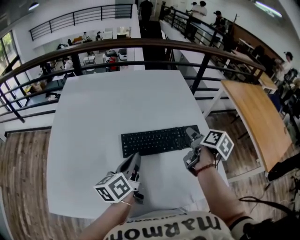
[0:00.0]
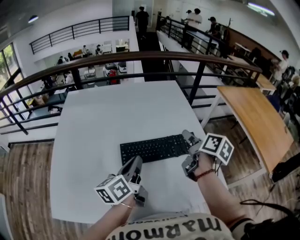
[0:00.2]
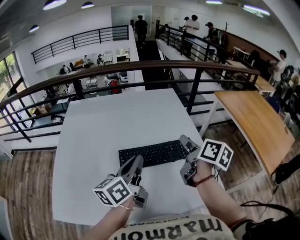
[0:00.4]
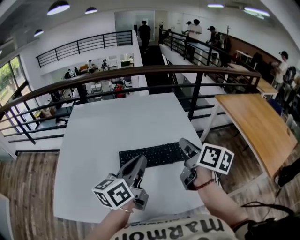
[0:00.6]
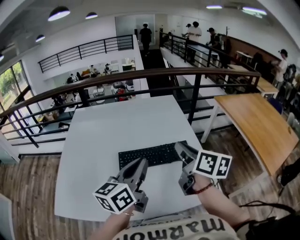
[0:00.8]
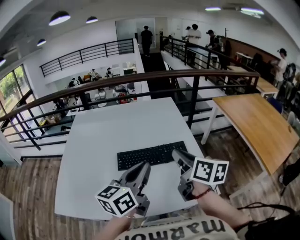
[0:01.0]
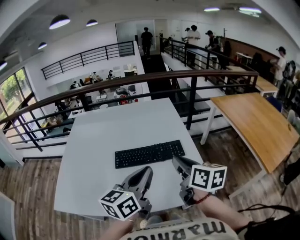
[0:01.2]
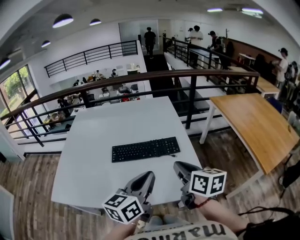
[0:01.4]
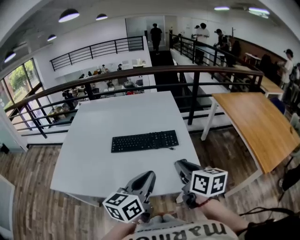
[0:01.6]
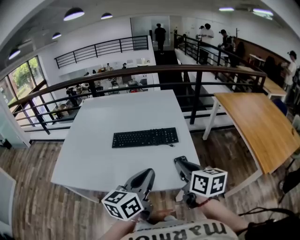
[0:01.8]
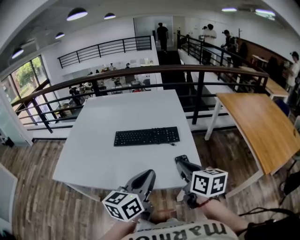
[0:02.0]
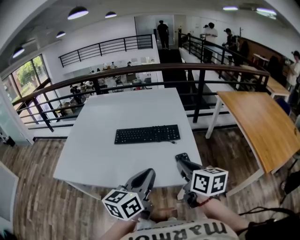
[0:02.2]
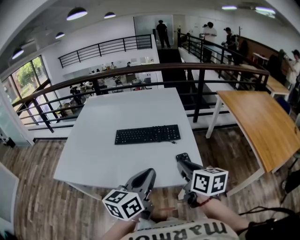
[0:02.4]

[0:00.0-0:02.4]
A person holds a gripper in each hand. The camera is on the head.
0:00.0 to 0:01.2: The left gripper travels to the right, upward and backward by approximately 30 cm, and turns by roughly 30 degrees. The right gripper moves backward and upward, roughly 25 cm, changes its angle by roughly 40 degrees, and closes up.
0:01.2 to 0:02.4: Both grippers travel together backward and to the right, roughly 15 cm.

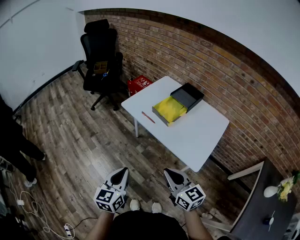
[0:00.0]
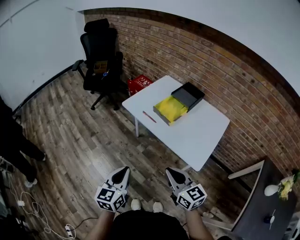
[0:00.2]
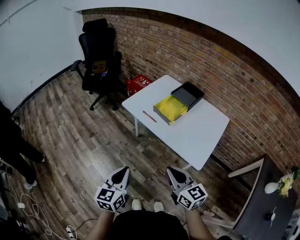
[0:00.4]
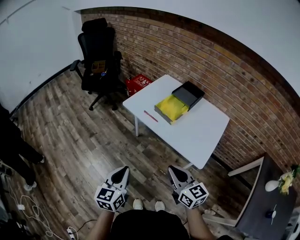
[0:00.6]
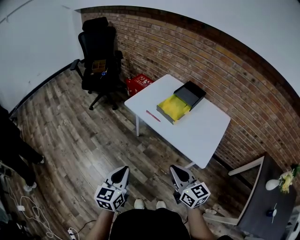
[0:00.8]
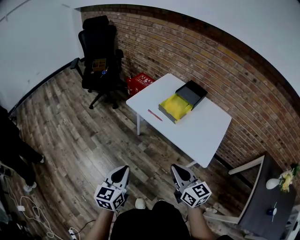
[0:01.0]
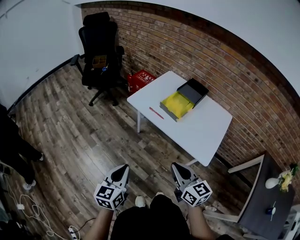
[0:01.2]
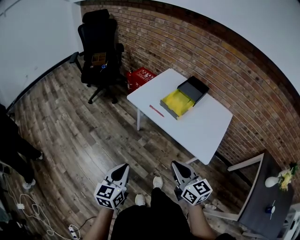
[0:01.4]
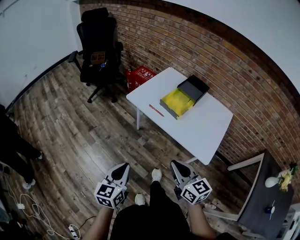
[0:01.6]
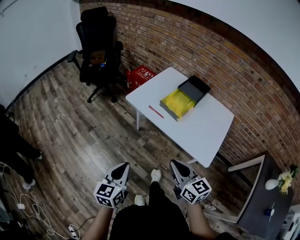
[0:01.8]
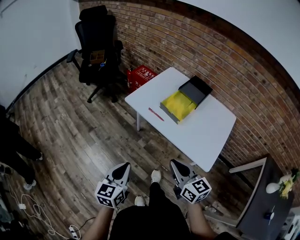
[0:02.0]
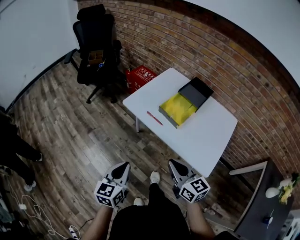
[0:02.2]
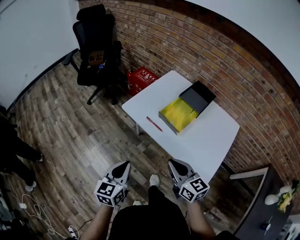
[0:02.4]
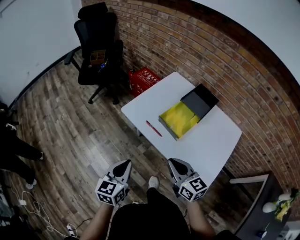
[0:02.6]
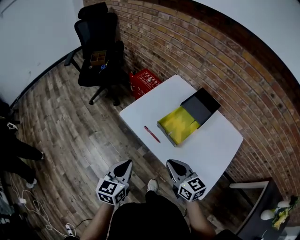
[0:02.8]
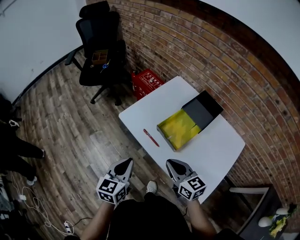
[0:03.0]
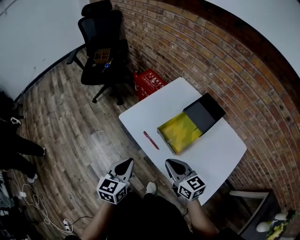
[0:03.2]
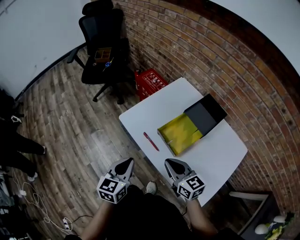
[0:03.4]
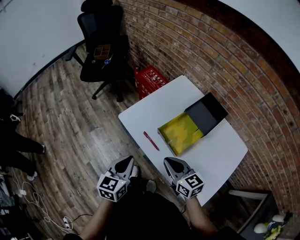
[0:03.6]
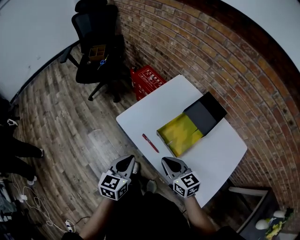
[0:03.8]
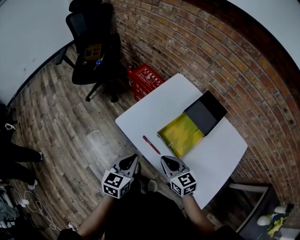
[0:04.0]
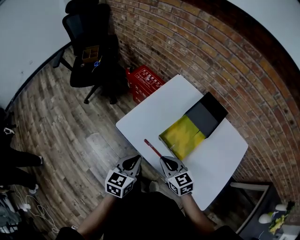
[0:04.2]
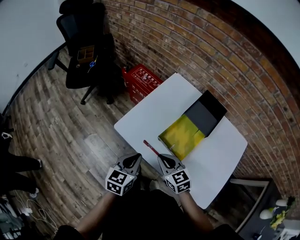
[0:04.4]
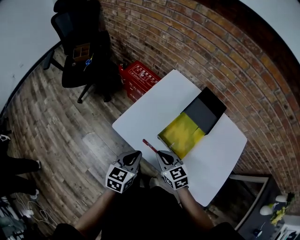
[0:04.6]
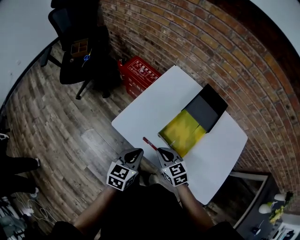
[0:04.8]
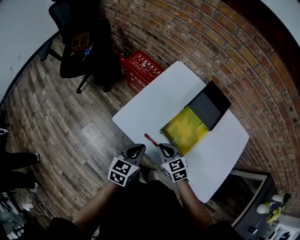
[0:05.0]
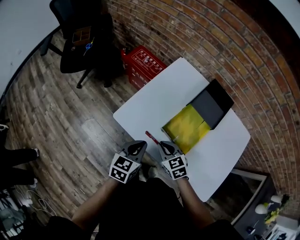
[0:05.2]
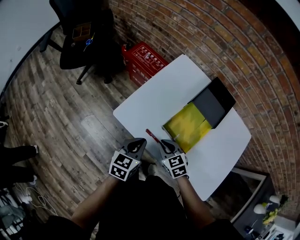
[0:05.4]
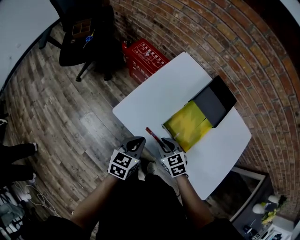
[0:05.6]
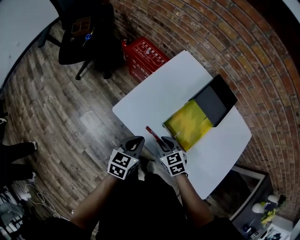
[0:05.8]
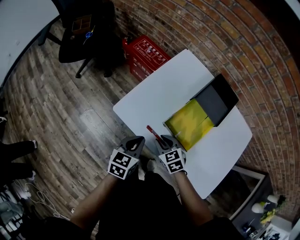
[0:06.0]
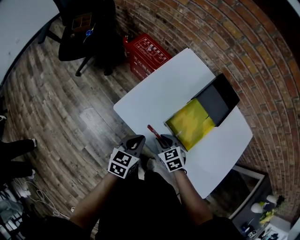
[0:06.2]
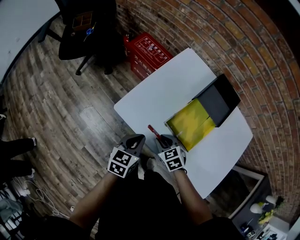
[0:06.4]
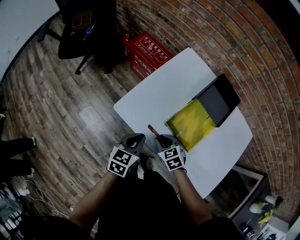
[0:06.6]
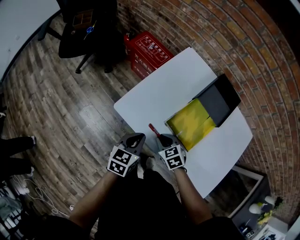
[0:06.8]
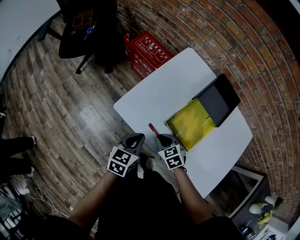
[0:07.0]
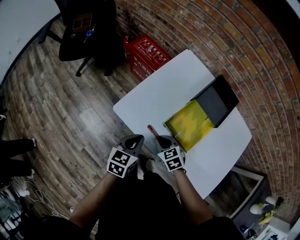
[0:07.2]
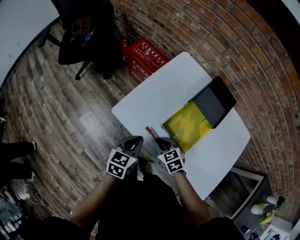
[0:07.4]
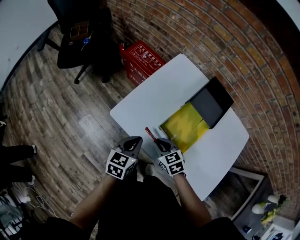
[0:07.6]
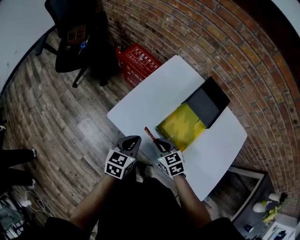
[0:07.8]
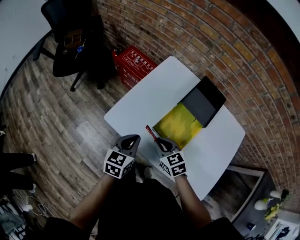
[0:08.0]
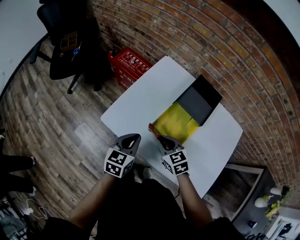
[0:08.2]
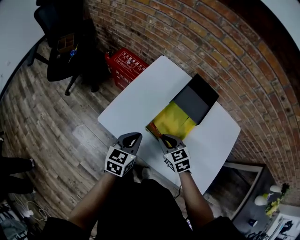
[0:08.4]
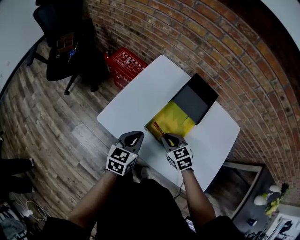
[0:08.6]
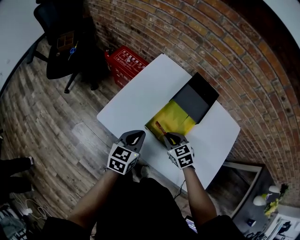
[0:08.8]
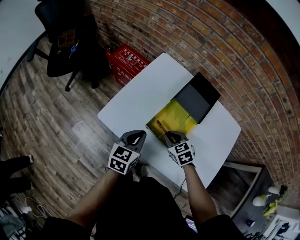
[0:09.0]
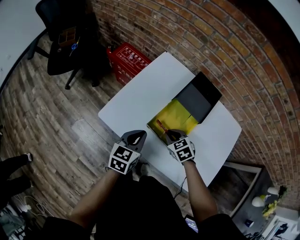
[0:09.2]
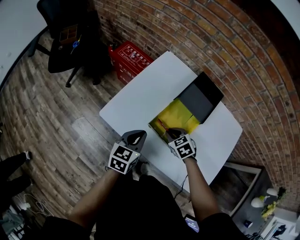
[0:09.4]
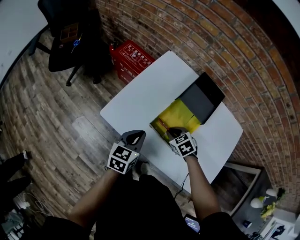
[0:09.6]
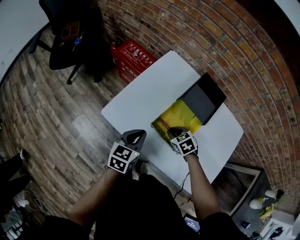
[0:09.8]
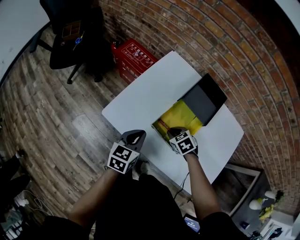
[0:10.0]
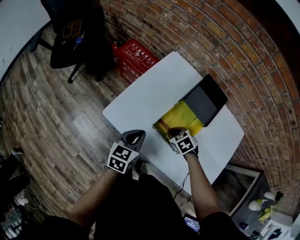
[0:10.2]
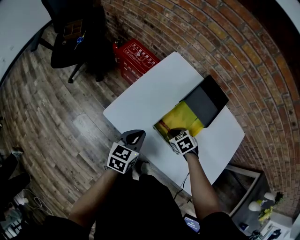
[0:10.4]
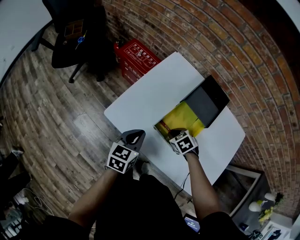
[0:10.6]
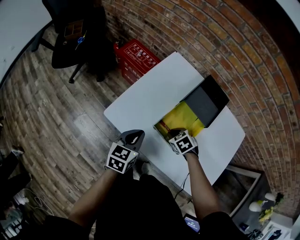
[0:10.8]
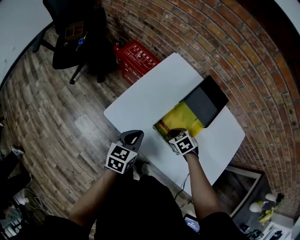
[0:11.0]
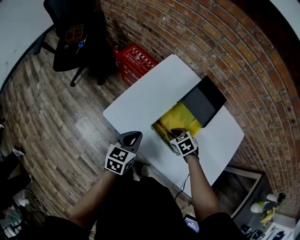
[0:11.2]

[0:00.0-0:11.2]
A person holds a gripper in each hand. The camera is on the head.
0:00.0 to 0:01.6: The two grippers go about 5 cm to the left.
0:01.6 to 0:03.2: The right gripper travels forward by about 30 cm. Meanwhile the left gripper heads forward and to the right, covering about 30 cm.
0:03.2 to 0:04.8: The left gripper is displaced forward and downward by some 15 cm, and rotates about 20 degrees. Meanwhile the right gripper goes about 15 cm forward, downward and to the left, and changes its angle by about 20 degrees.
0:04.8 to 0:06.4: The right gripper travels downward by some 10 cm. Meanwhile the left gripper travels downward by some 5 cm.
0:06.4 to 0:08.0: The left gripper shifts by about 5 cm. The right gripper goes roughly 10 cm upward.
0:08.0 to 0:09.6: The right gripper shifts about 10 cm to the right and downward, and rotates roughly 20 degrees.
0:09.6 to 0:11.2: The grippers make only small movements.

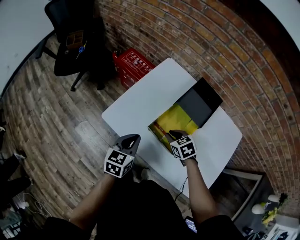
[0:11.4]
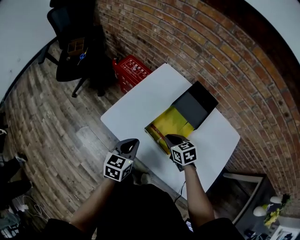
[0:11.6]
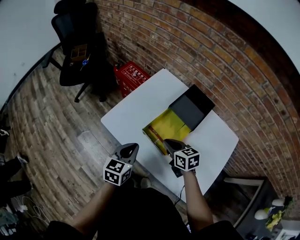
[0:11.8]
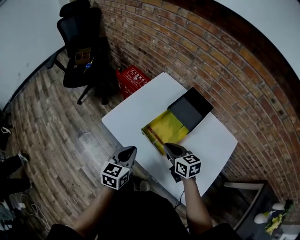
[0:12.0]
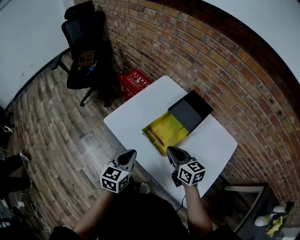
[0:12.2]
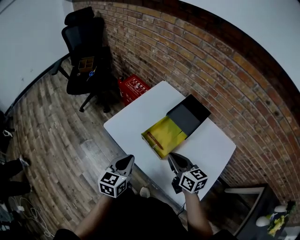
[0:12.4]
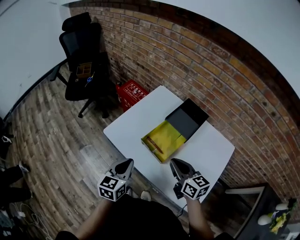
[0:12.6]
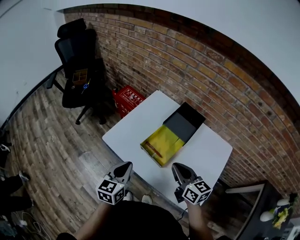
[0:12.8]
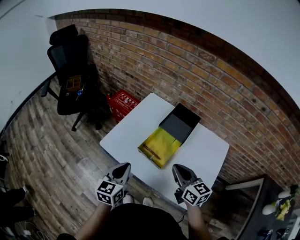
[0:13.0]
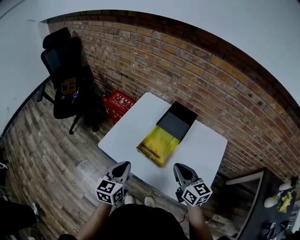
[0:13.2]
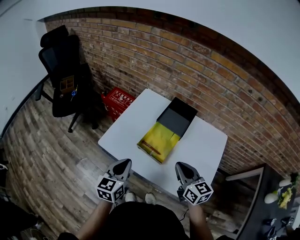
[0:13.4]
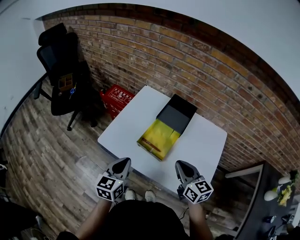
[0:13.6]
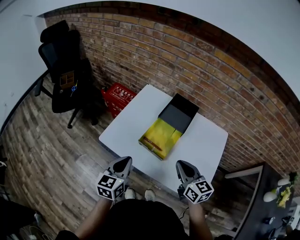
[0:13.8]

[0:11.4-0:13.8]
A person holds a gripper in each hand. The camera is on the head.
0:11.4 to 0:12.6: The left gripper travels backward and upward by approximately 15 cm. The right gripper is displaced upward and backward by approximately 20 cm, and tips its fingers upward by roughly 40 degrees.
0:12.6 to 0:13.8: The grippers stay close to where they were, moving slightly.

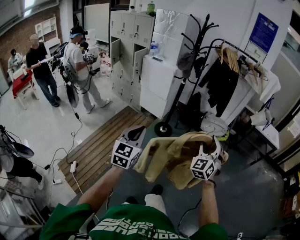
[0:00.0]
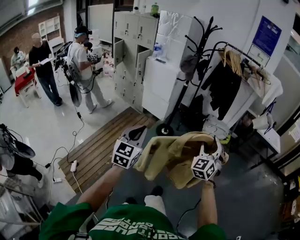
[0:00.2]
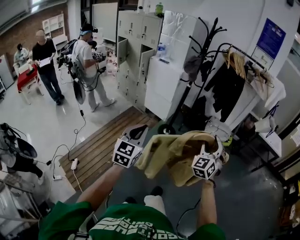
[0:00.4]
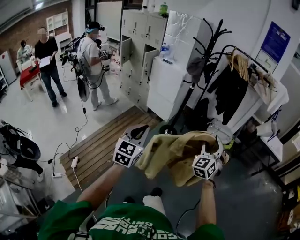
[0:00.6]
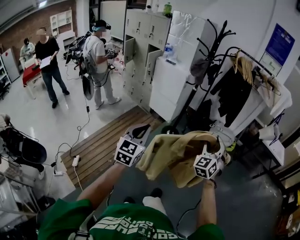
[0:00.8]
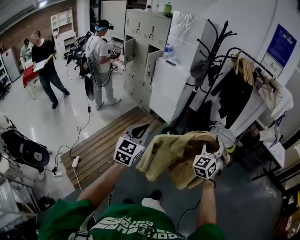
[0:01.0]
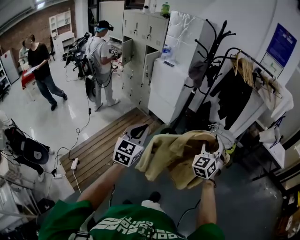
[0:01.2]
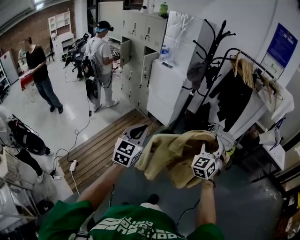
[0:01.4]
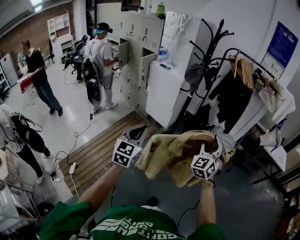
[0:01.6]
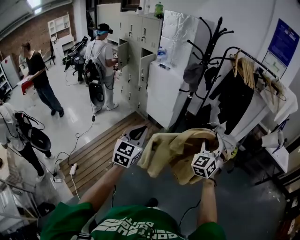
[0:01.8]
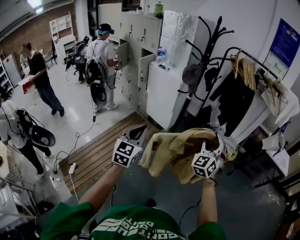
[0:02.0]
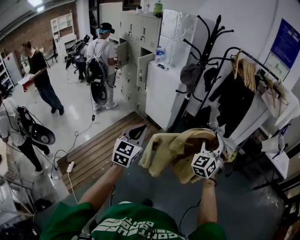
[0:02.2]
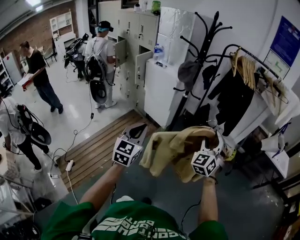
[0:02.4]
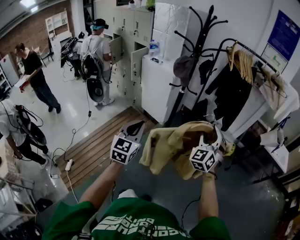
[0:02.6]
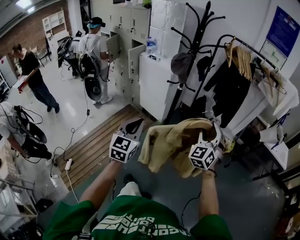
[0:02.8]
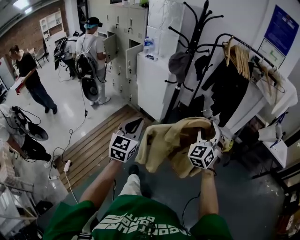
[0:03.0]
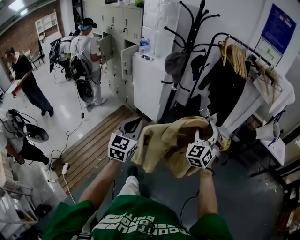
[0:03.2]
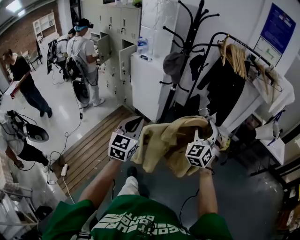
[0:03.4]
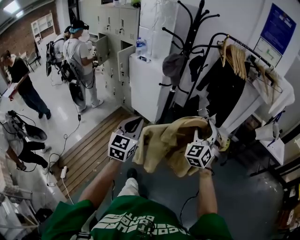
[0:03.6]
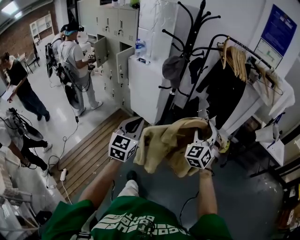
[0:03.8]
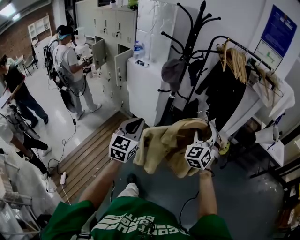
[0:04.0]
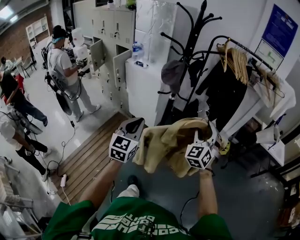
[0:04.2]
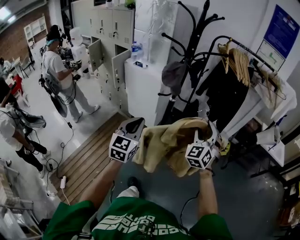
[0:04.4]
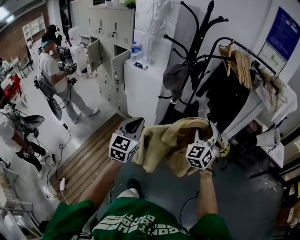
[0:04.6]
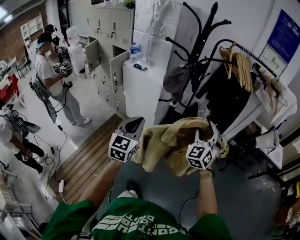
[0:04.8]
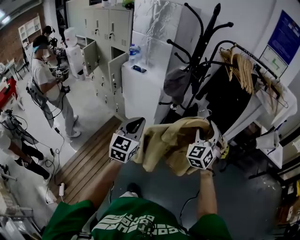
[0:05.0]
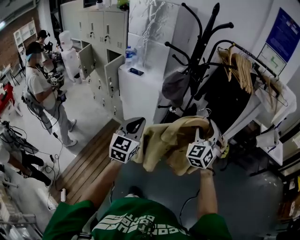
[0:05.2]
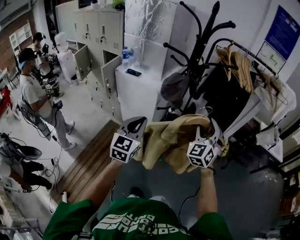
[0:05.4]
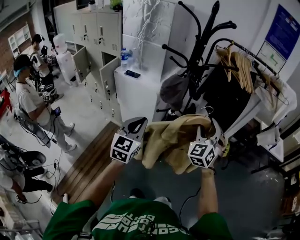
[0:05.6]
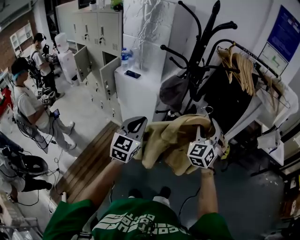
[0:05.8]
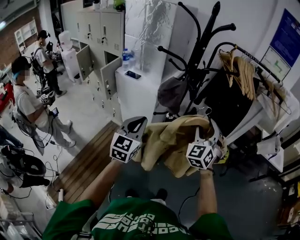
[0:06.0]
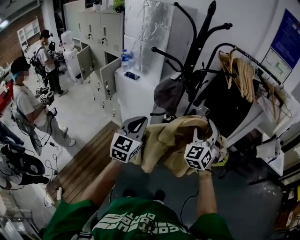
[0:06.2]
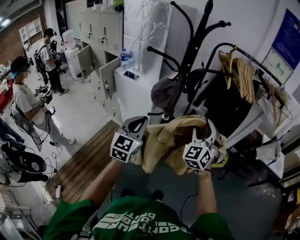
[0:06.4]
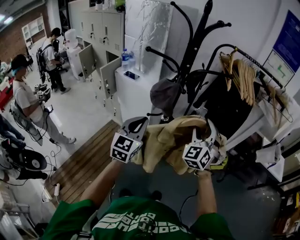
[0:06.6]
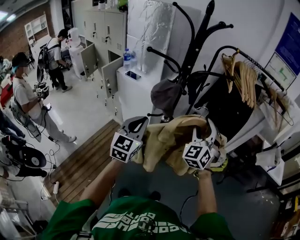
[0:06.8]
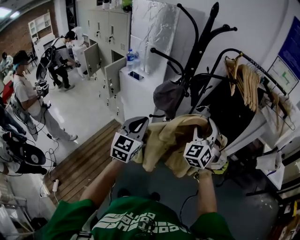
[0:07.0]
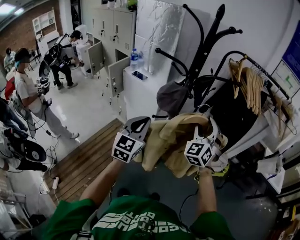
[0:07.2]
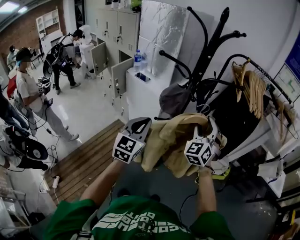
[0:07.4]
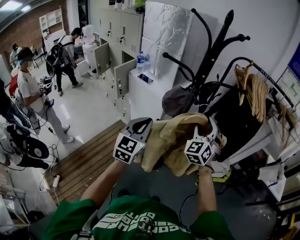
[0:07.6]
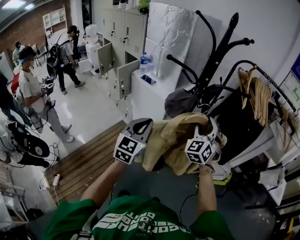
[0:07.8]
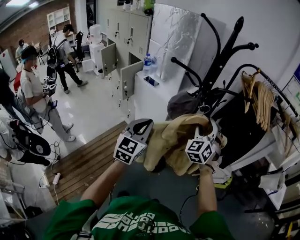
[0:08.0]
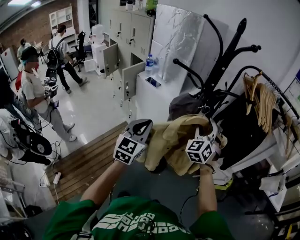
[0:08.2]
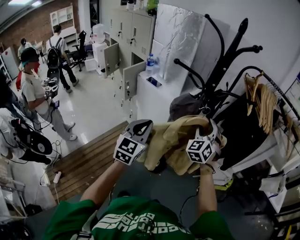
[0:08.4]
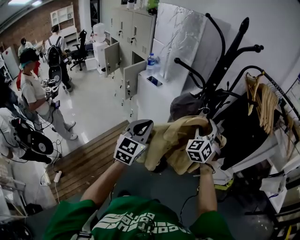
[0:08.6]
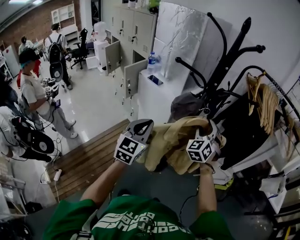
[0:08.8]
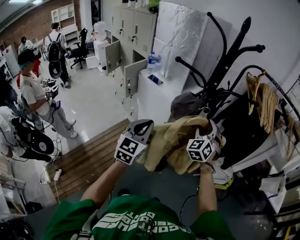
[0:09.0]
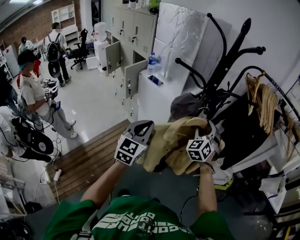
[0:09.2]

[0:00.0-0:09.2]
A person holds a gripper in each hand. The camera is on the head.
0:00.0 to 0:01.6: Both grippers move forward, roughly 20 cm.
0:01.6 to 0:03.0: The grippers both shift forward and to the right by roughly 15 cm.
0:03.0 to 0:04.6: The left gripper travels forward by roughly 20 cm. The right gripper goes about 15 cm forward and to the left.
0:04.6 to 0:06.2: Both grippers travel together forward, approximately 15 cm.
0:06.2 to 0:07.6: The right gripper heads forward, covering roughly 5 cm.
0:07.6 to 0:09.2: The right gripper travels downward and forward by approximately 10 cm.
